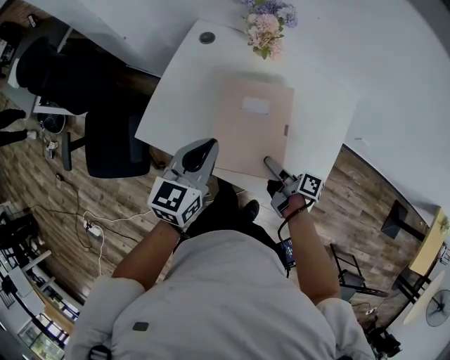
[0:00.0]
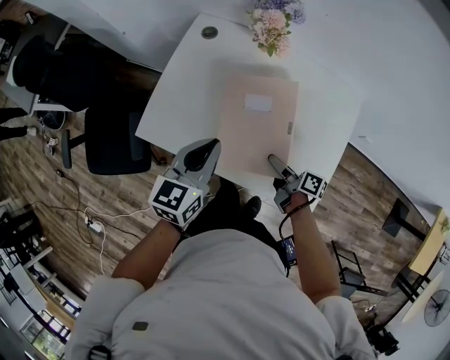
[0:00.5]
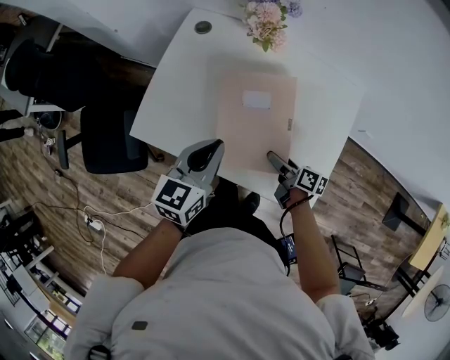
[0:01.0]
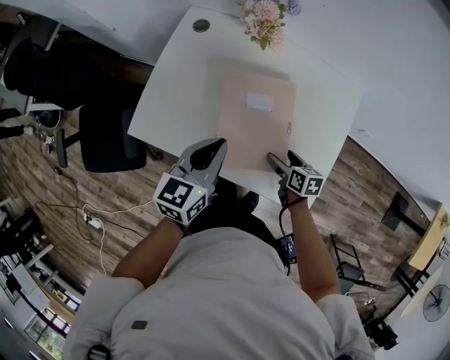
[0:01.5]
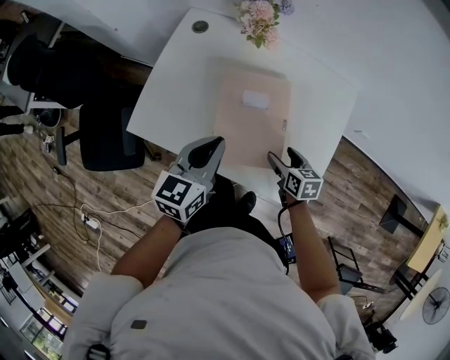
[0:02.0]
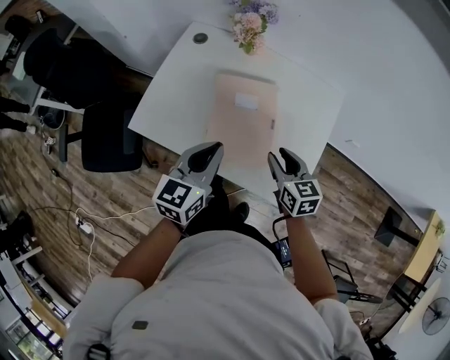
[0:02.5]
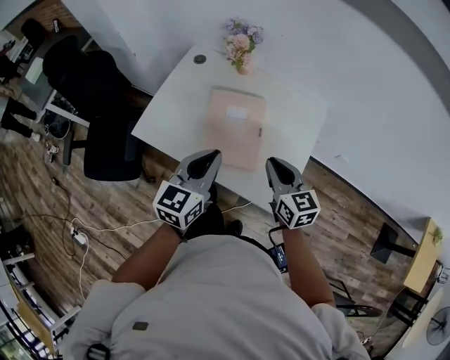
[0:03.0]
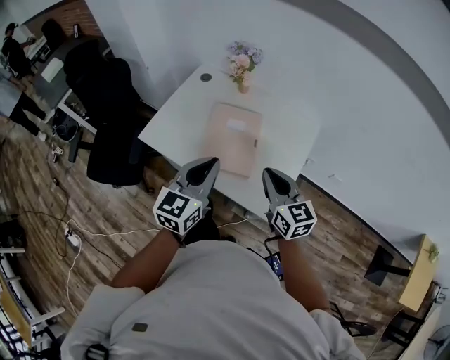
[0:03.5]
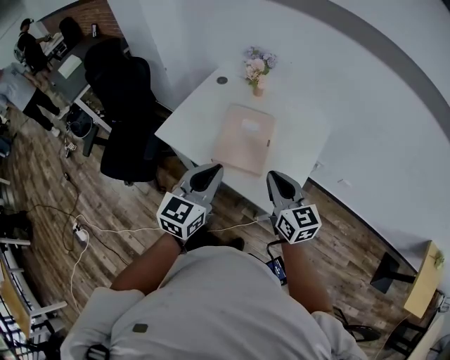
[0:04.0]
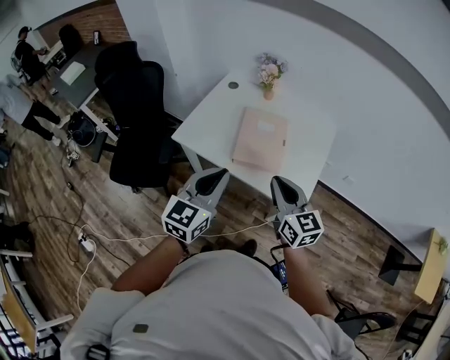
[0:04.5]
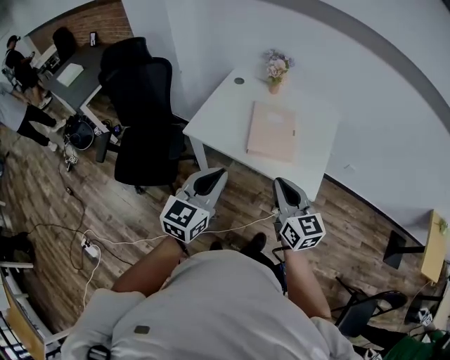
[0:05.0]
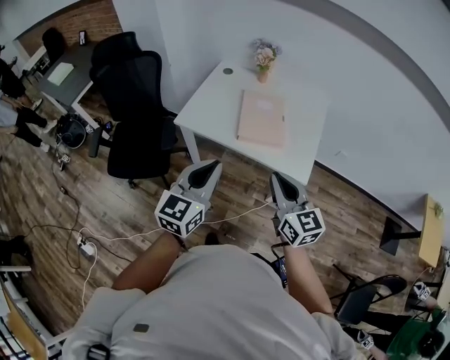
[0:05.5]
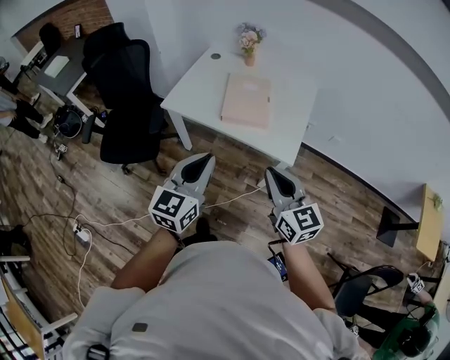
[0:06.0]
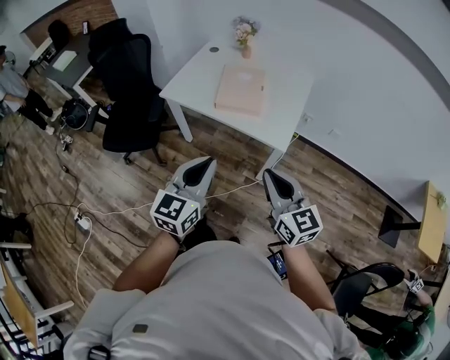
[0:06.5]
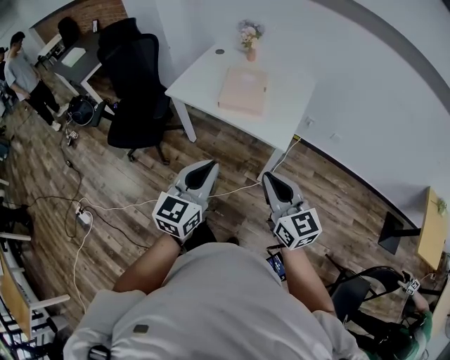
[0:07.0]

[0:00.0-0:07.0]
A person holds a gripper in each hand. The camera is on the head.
0:00.0 to 0:02.0: The right gripper travels to the right by about 5 cm, and rotates around the line of its fingers by roughly 50 degrees, counterclockwise from behind.
0:02.0 to 0:03.5: The left gripper is displaced backward, upward and to the right by some 25 cm. Meanwhile the right gripper is displaced upward and backward by approximately 30 cm, tilts its fingers approximately 30 degrees upward, and closes up.
0:03.5 to 0:05.0: The grippers both shift to the left and backward by approximately 30 cm.
0:05.0 to 0:07.0: The two grippers go some 25 cm backward and to the right.

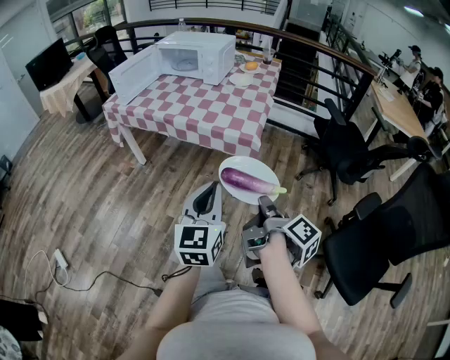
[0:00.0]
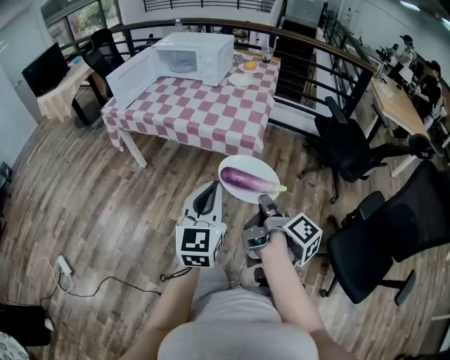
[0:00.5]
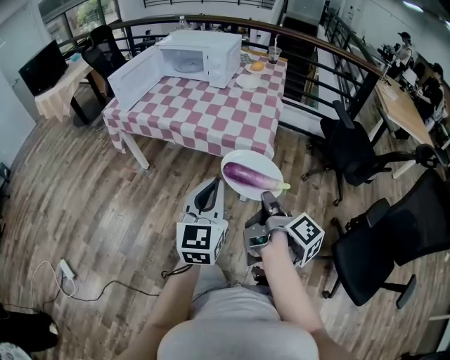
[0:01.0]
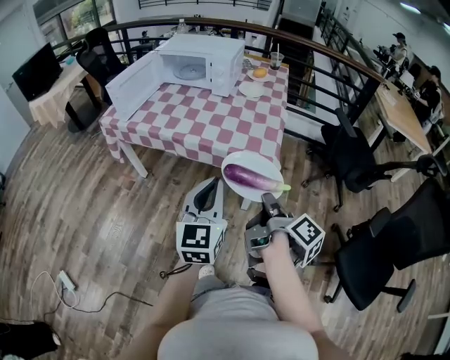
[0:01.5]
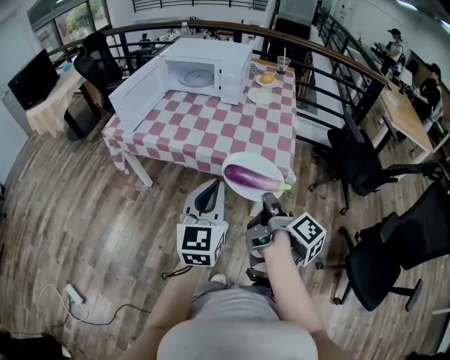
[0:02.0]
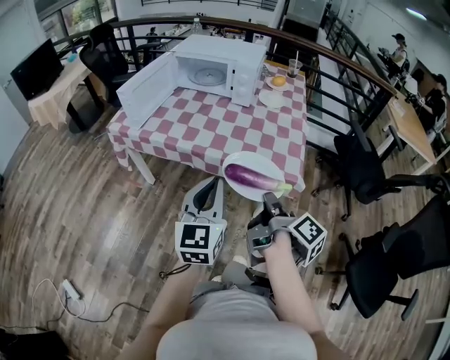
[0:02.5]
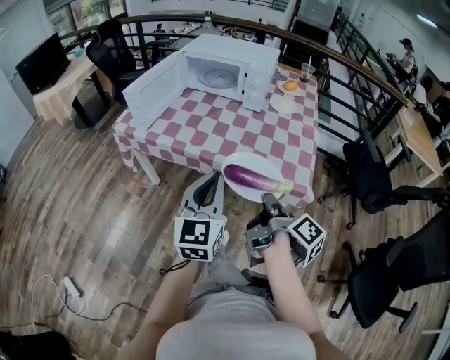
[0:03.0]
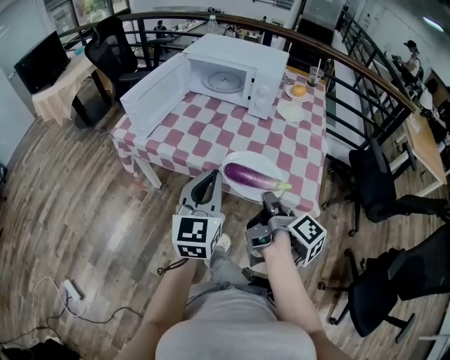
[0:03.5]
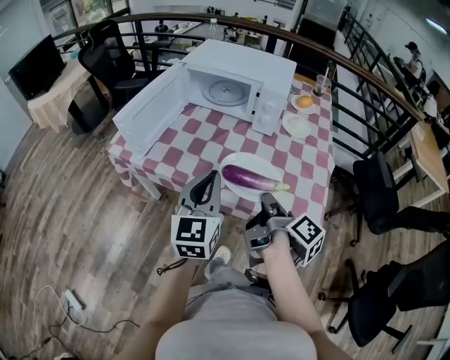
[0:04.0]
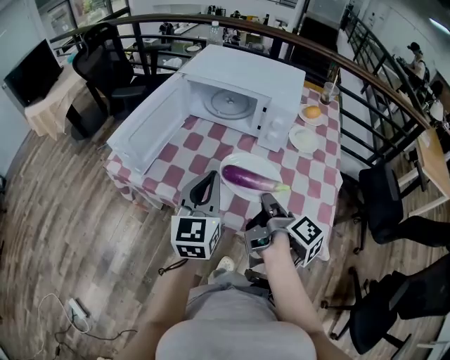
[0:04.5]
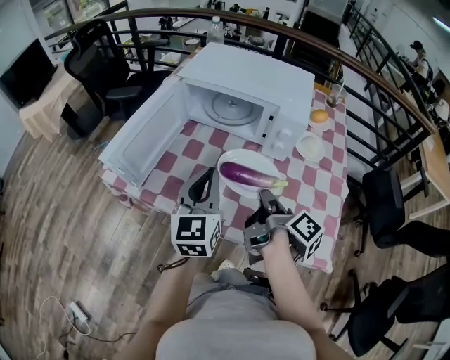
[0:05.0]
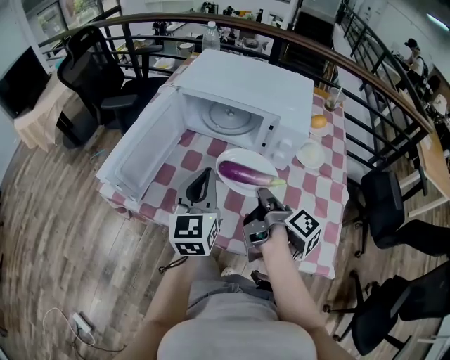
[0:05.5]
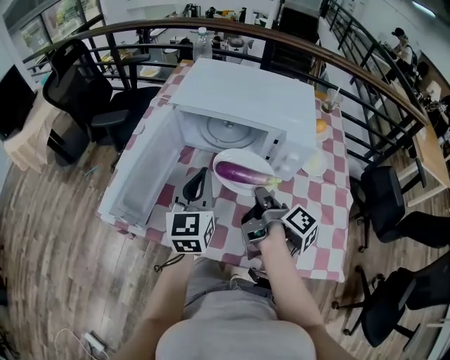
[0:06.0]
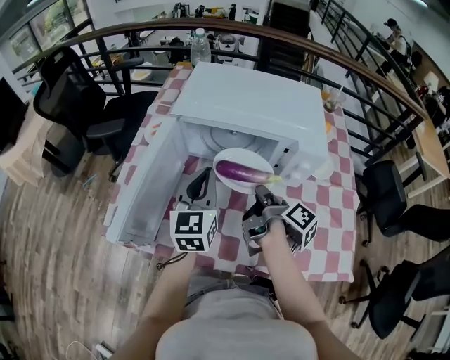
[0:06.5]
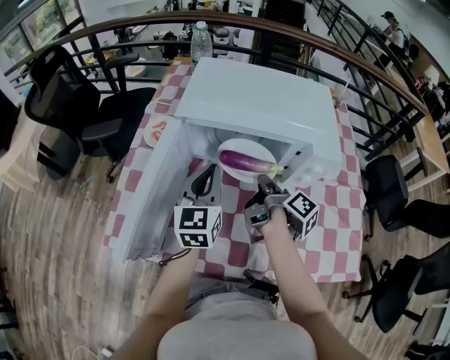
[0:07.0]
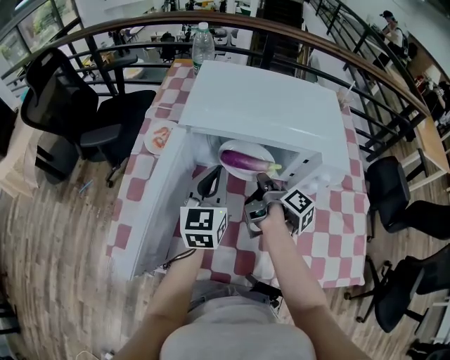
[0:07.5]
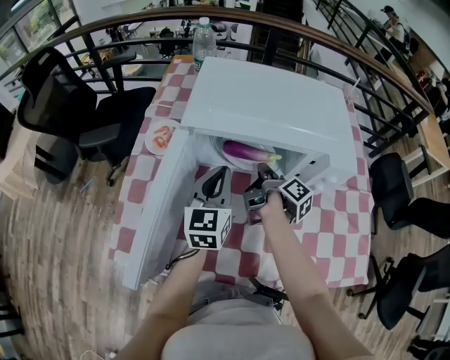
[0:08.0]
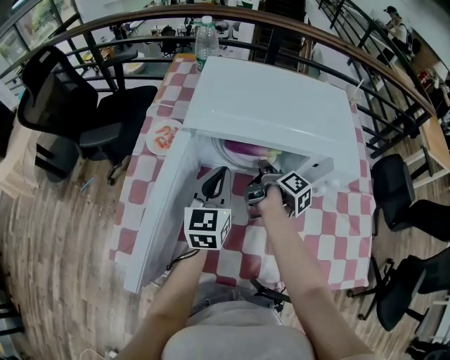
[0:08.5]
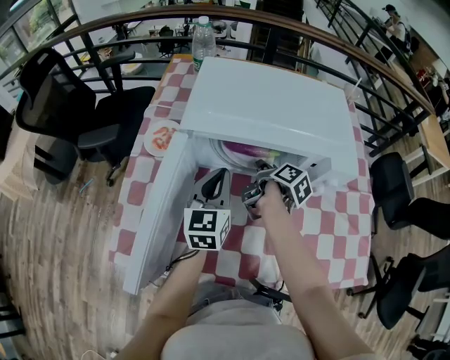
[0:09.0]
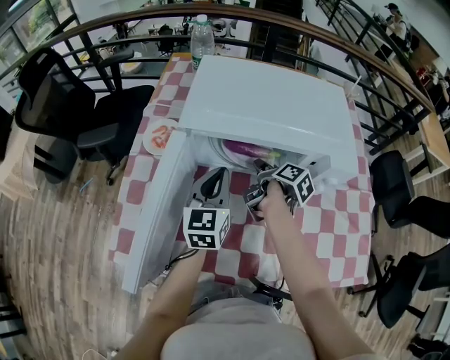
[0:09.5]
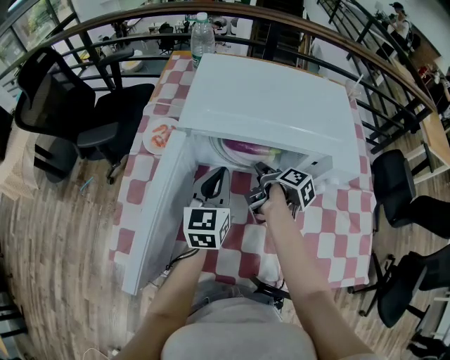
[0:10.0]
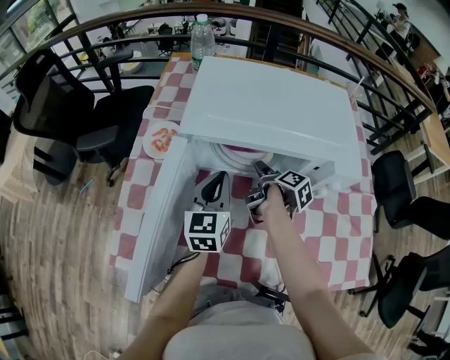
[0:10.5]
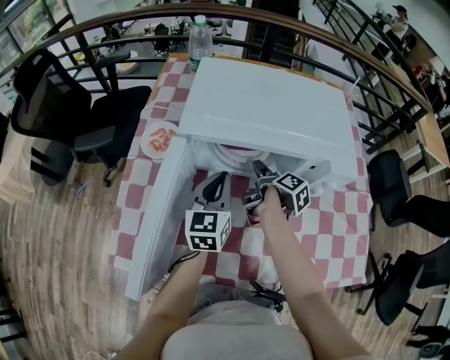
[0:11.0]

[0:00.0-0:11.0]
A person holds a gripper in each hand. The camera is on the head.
0:00.0 to 0:02.0: The left gripper changes place by roughly 25 cm.
0:02.0 to 0:03.5: The left gripper changes place by about 20 cm.
0:03.5 to 0:05.5: The left gripper changes place by approximately 30 cm.
0:05.5 to 0:07.5: The left gripper shifts by roughly 20 cm.

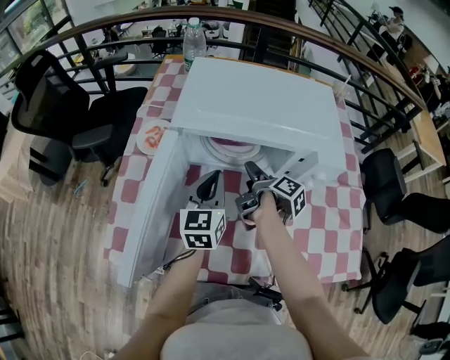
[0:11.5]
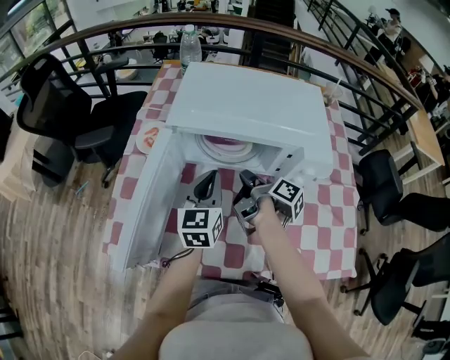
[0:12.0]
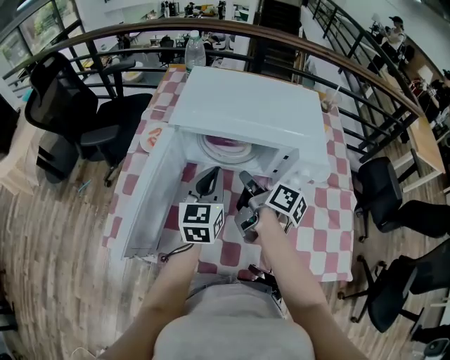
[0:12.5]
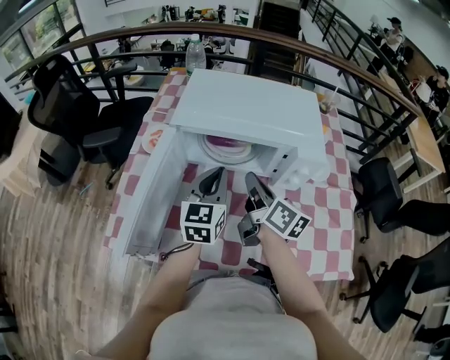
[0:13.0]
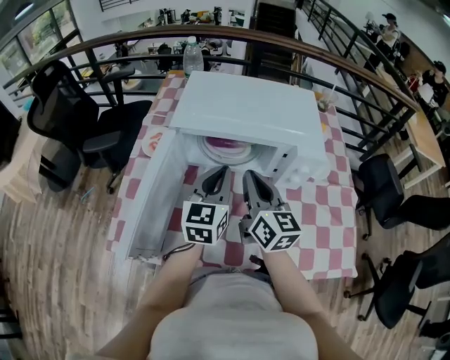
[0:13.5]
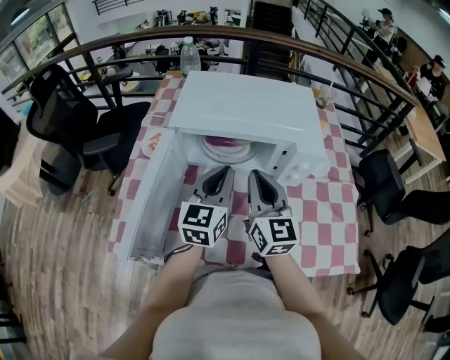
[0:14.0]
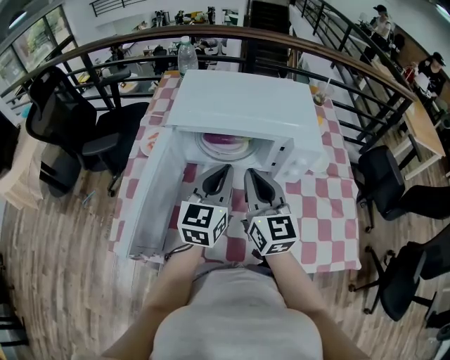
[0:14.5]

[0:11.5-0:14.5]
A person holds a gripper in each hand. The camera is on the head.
0:11.5 to 0:13.0: The left gripper travels upward by about 5 cm.

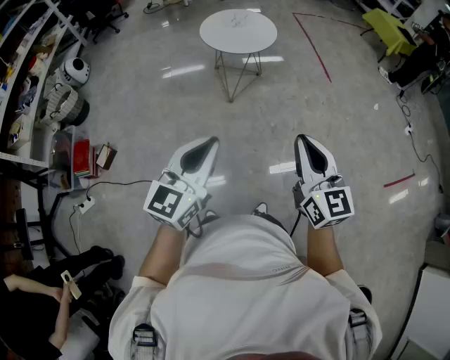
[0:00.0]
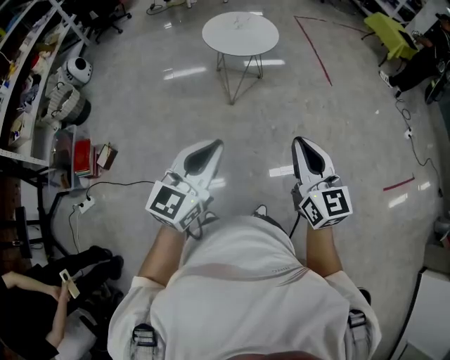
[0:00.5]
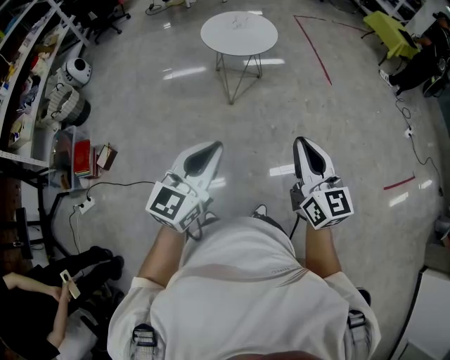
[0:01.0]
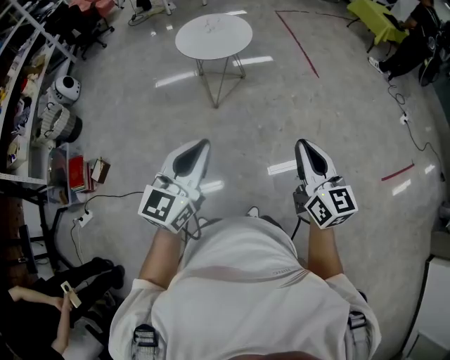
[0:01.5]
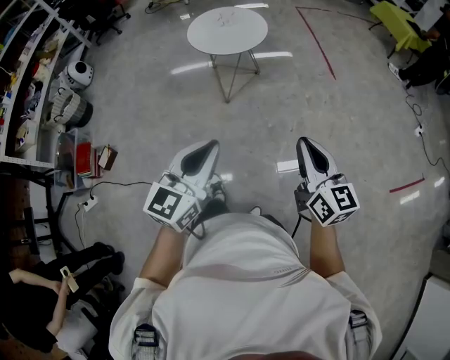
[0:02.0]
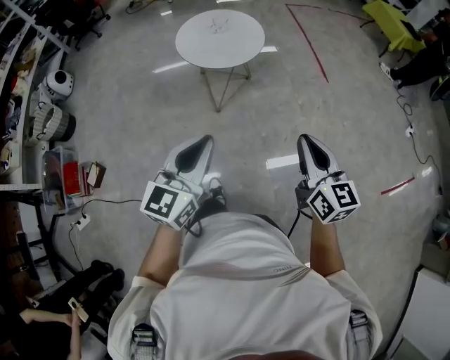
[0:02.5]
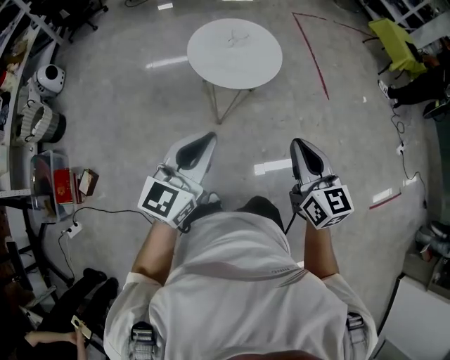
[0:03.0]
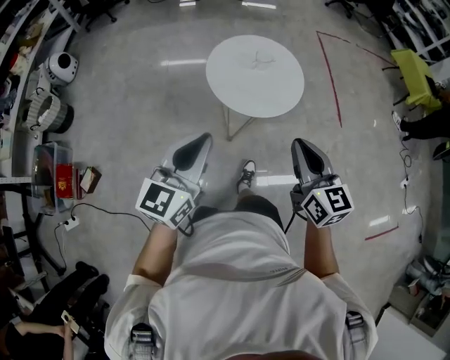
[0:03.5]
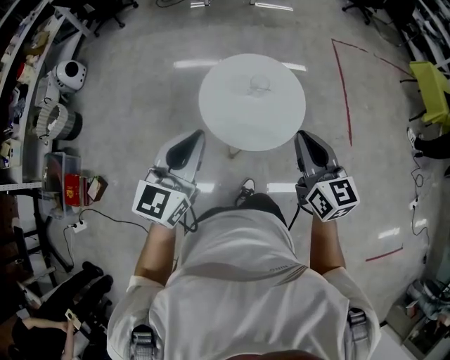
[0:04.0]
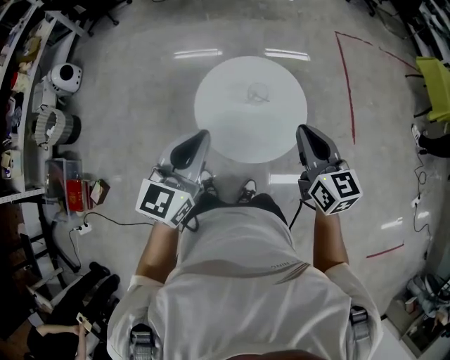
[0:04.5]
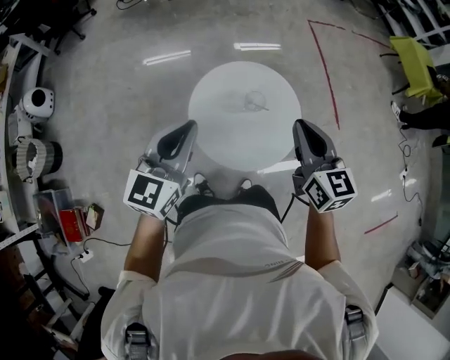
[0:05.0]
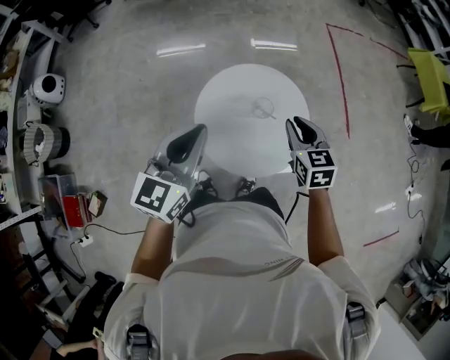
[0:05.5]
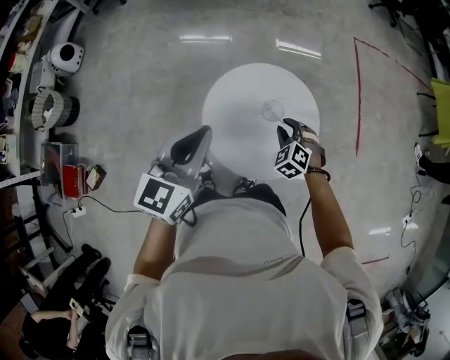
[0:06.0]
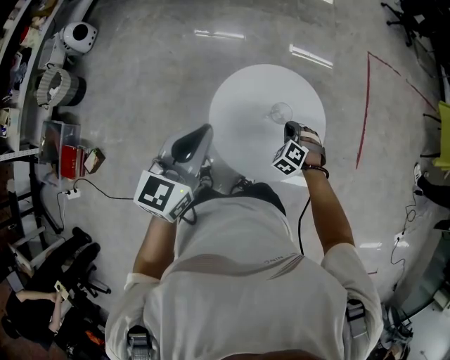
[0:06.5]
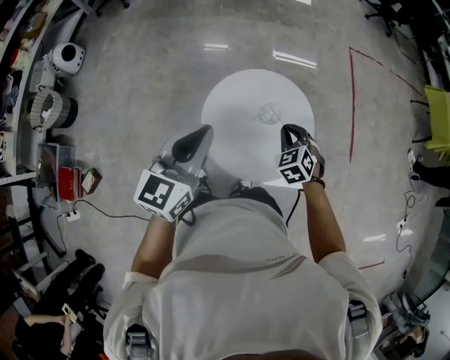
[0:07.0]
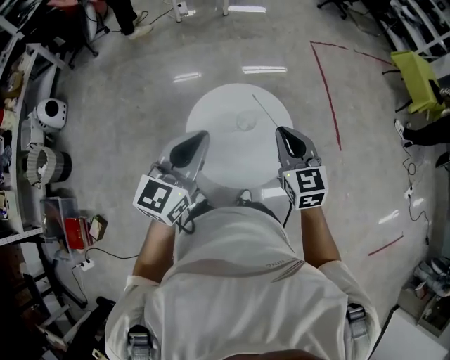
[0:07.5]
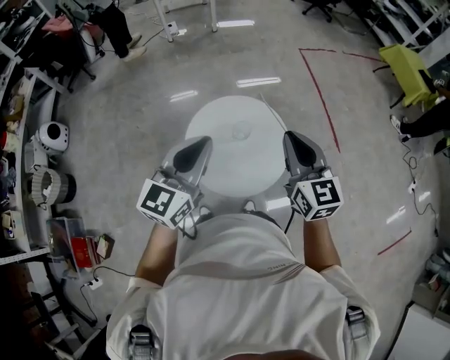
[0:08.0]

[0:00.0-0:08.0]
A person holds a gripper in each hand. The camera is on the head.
0:00.0 to 0:02.0: Both grippers move to the right and forward, about 15 cm.
0:02.0 to 0:04.0: The two grippers travel together, forward, about 70 cm.
0:04.0 to 0:06.0: The left gripper moves forward, some 25 cm. The right gripper is displaced forward and downward by approximately 40 cm, angles its fingers downward, by roughly 40 degrees, and opens its fingers.
0:06.0 to 0:08.0: The right gripper is displaced upward by some 30 cm, angles its fingers upward, by about 40 degrees, and closes its fingers; the left gripper is displaced upward and to the right by about 10 cm, and rotates approximately 20 degrees.
